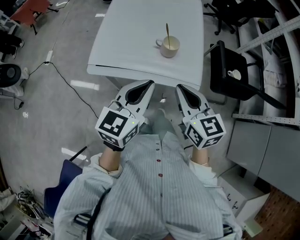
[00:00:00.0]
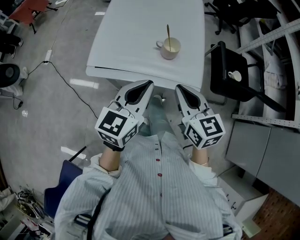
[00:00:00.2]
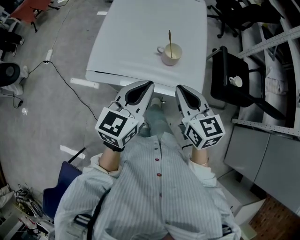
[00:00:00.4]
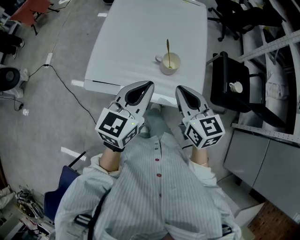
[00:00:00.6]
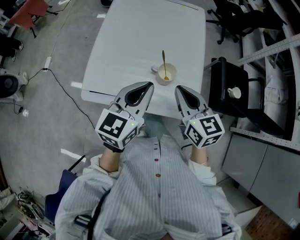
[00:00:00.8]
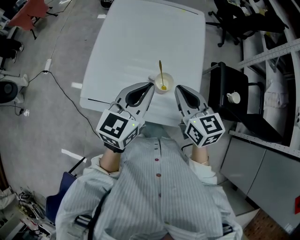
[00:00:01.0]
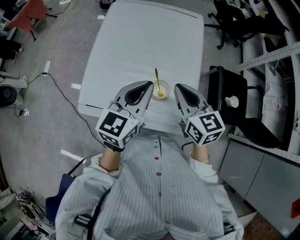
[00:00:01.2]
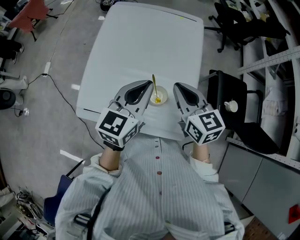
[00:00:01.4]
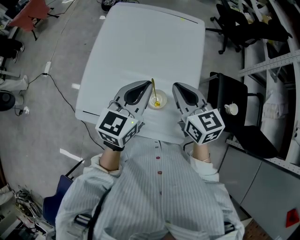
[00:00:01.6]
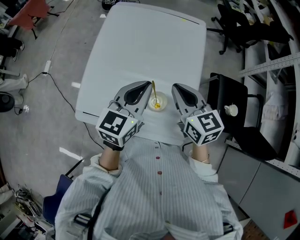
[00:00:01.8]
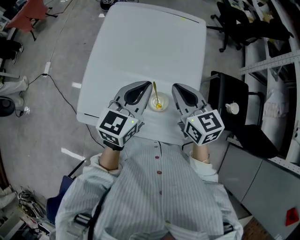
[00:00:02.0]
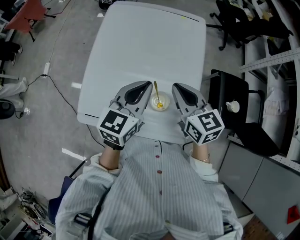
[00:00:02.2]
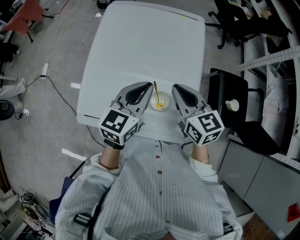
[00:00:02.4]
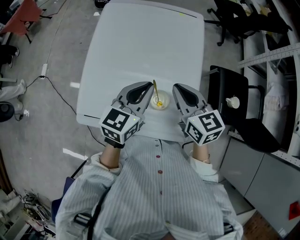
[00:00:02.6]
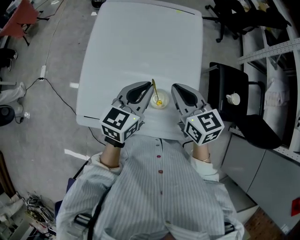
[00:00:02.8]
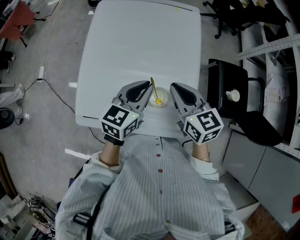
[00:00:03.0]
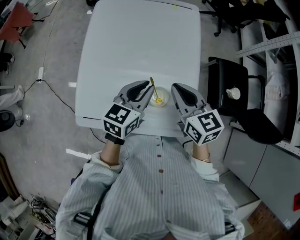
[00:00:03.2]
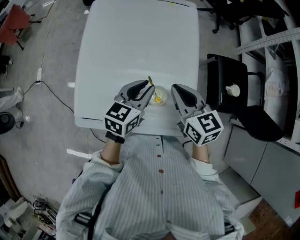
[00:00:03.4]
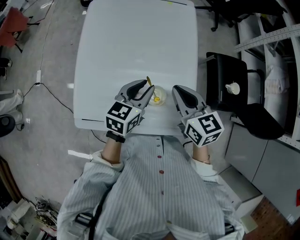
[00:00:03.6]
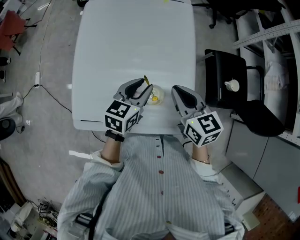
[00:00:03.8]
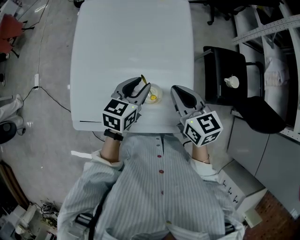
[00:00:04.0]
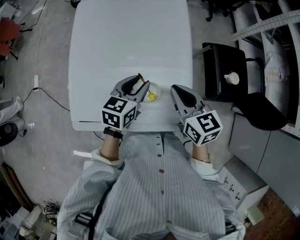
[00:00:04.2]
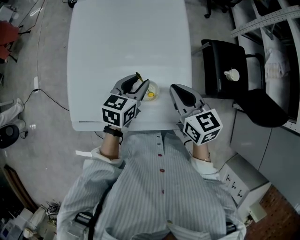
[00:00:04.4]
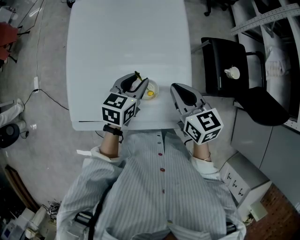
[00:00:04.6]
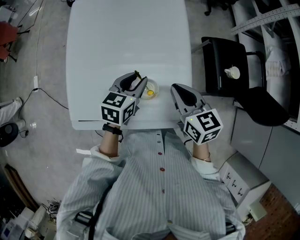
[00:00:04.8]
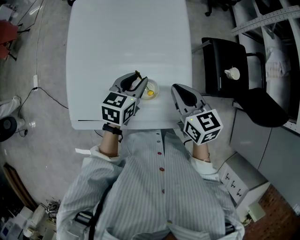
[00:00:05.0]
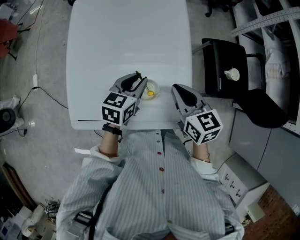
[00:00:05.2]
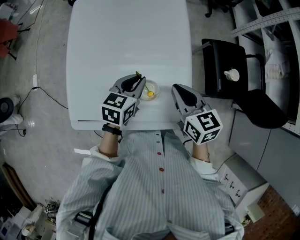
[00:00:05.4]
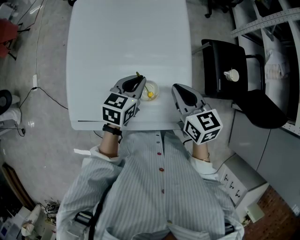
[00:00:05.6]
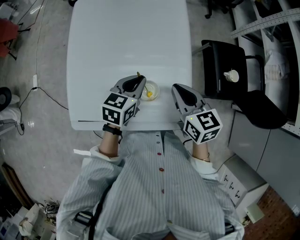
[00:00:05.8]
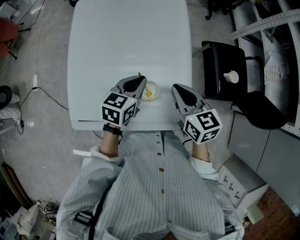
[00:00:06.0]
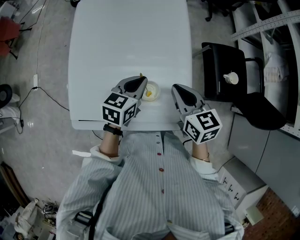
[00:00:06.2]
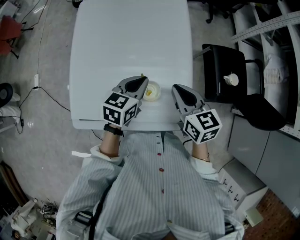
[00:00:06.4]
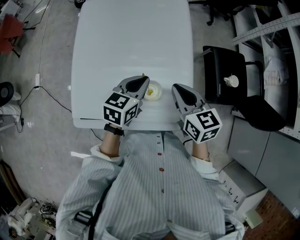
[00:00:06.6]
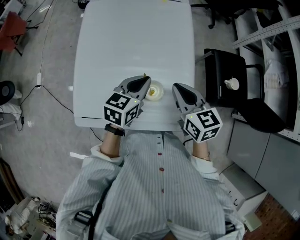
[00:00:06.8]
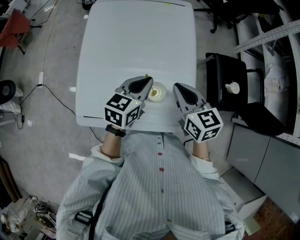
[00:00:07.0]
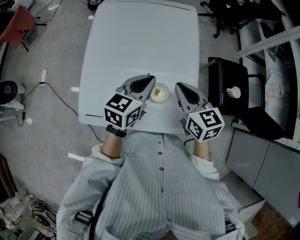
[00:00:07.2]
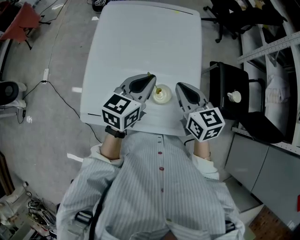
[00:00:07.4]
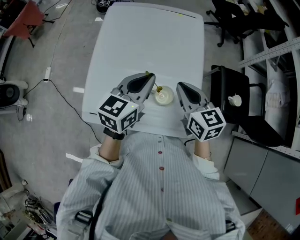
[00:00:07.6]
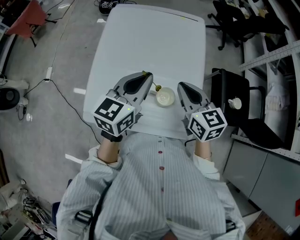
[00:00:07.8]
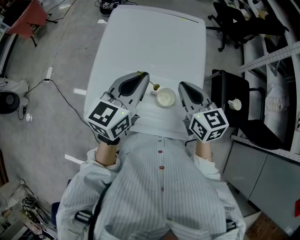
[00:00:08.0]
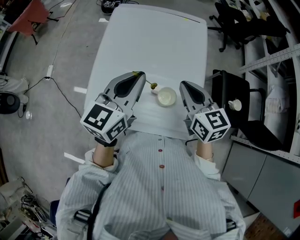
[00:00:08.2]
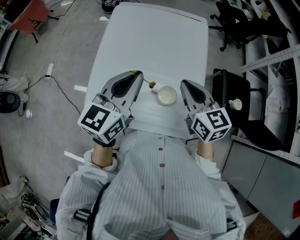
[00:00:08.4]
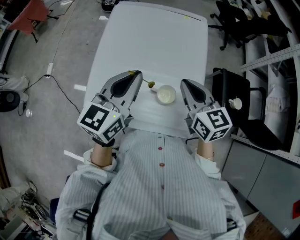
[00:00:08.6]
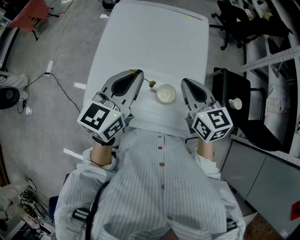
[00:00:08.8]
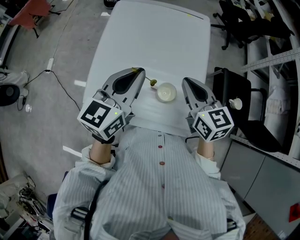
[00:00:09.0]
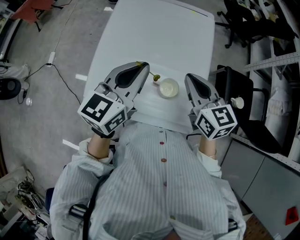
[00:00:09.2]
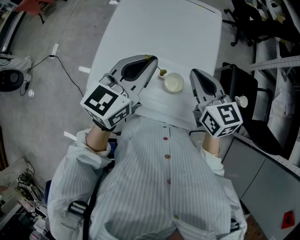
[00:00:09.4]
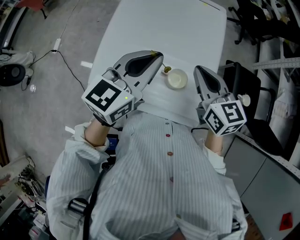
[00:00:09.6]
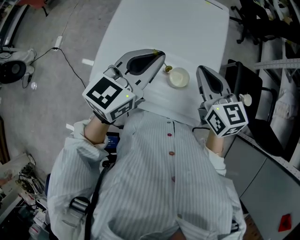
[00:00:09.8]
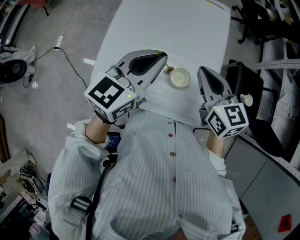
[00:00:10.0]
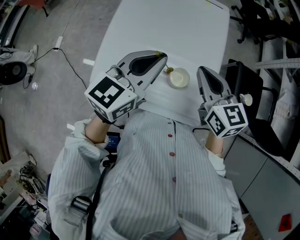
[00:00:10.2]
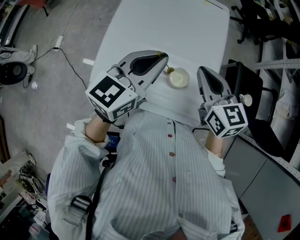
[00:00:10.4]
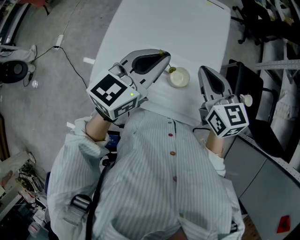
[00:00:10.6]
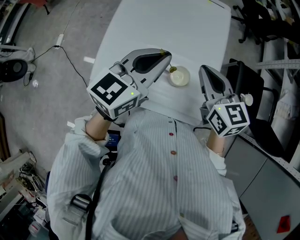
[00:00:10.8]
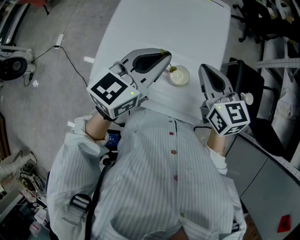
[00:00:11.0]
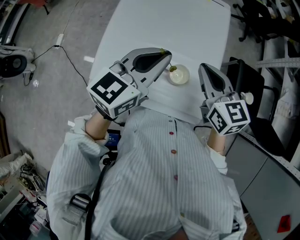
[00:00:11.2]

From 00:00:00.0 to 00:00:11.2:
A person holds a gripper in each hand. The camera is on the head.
From 00:00:00.0 to 00:00:01.6: The grippers both shift forward by approximately 30 cm.
From 00:00:01.6 to 00:00:03.2: The left gripper heads downward, covering some 10 cm.
From 00:00:03.2 to 00:00:04.8: The right gripper travels to the right by approximately 5 cm. The left gripper moves downward, roughly 5 cm.
From 00:00:04.8 to 00:00:06.4: The left gripper closes up.
From 00:00:06.4 to 00:00:08.0: The right gripper goes roughly 10 cm upward and to the left. Meanwhile the left gripper heads upward and to the left, covering about 20 cm, and turns by approximately 30 degrees.
From 00:00:08.0 to 00:00:11.2: The grippers stay close to where they were, moving slightly.

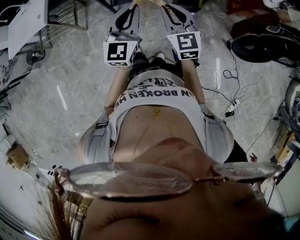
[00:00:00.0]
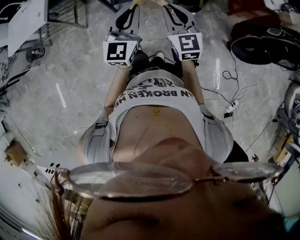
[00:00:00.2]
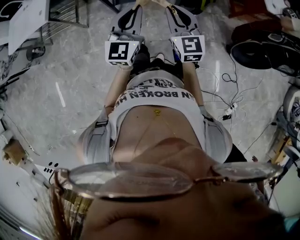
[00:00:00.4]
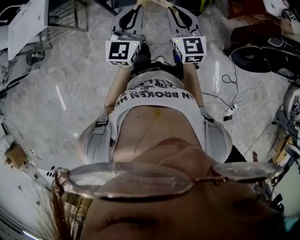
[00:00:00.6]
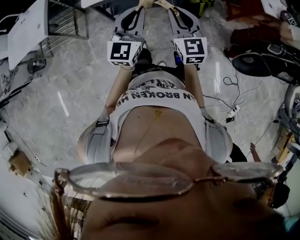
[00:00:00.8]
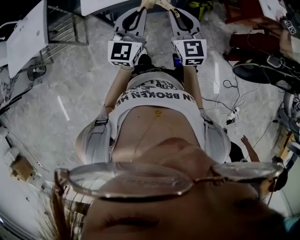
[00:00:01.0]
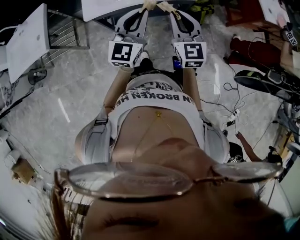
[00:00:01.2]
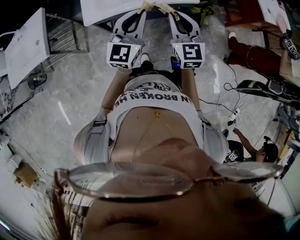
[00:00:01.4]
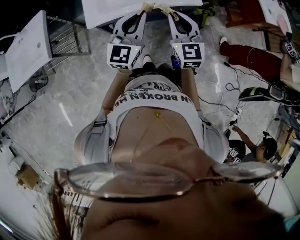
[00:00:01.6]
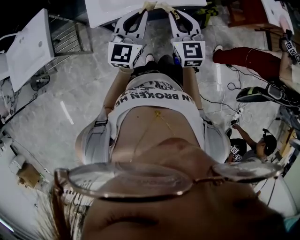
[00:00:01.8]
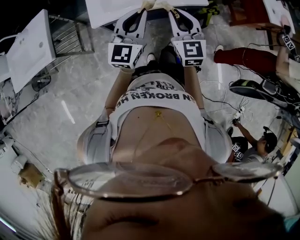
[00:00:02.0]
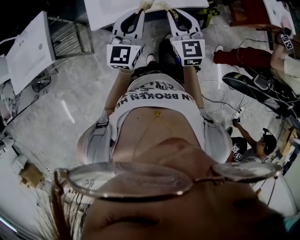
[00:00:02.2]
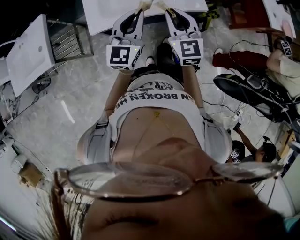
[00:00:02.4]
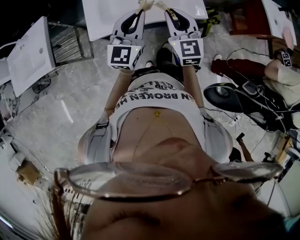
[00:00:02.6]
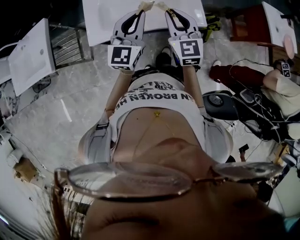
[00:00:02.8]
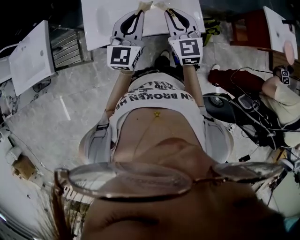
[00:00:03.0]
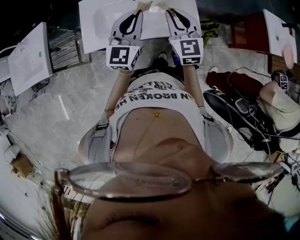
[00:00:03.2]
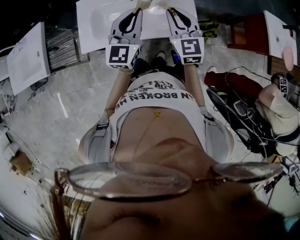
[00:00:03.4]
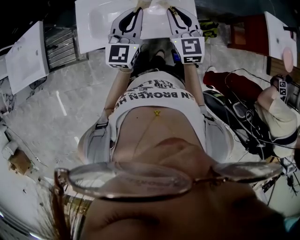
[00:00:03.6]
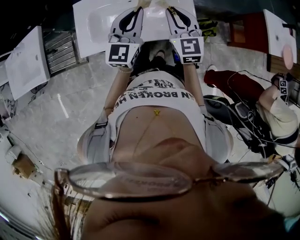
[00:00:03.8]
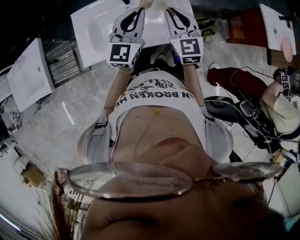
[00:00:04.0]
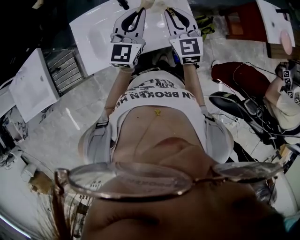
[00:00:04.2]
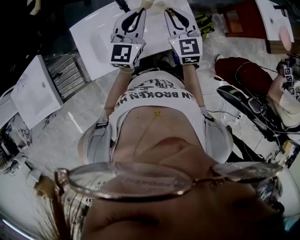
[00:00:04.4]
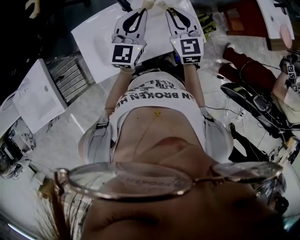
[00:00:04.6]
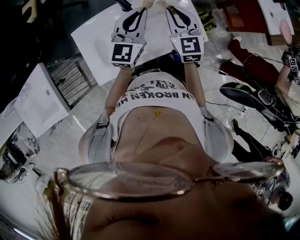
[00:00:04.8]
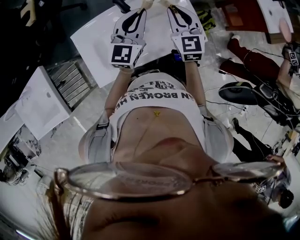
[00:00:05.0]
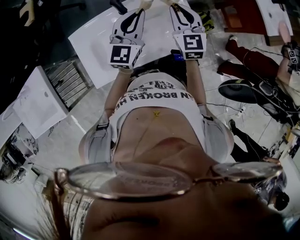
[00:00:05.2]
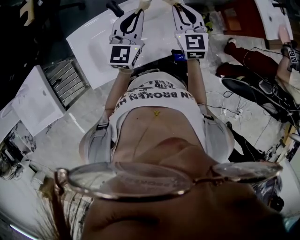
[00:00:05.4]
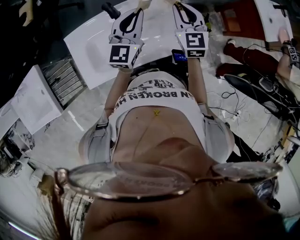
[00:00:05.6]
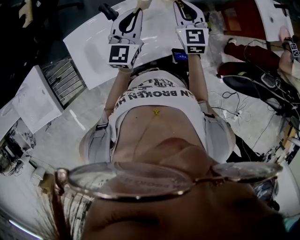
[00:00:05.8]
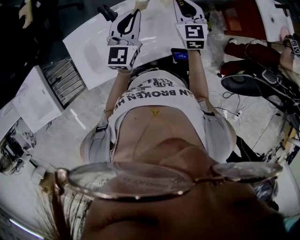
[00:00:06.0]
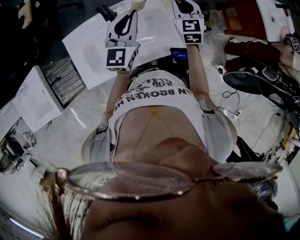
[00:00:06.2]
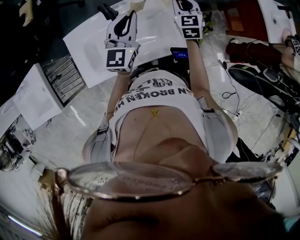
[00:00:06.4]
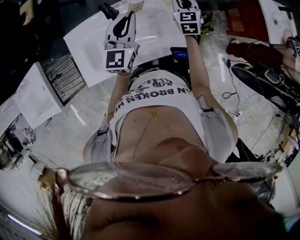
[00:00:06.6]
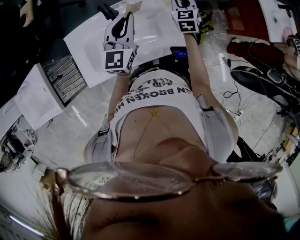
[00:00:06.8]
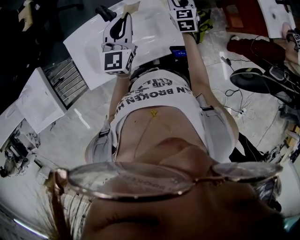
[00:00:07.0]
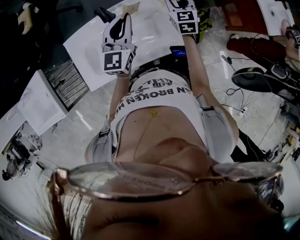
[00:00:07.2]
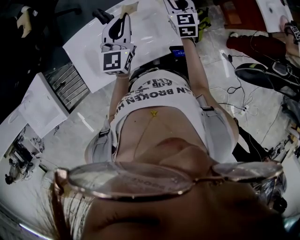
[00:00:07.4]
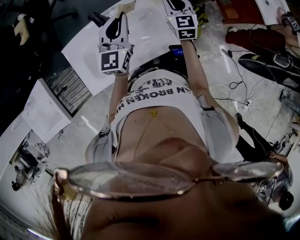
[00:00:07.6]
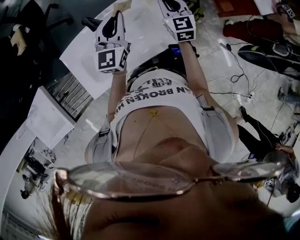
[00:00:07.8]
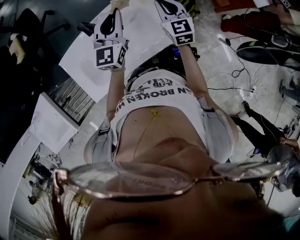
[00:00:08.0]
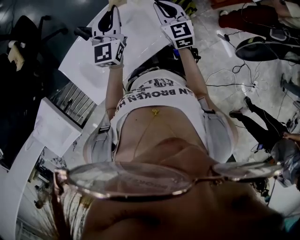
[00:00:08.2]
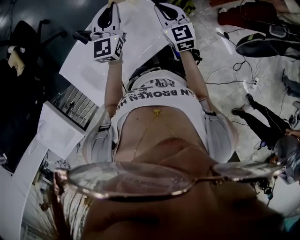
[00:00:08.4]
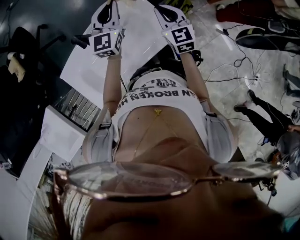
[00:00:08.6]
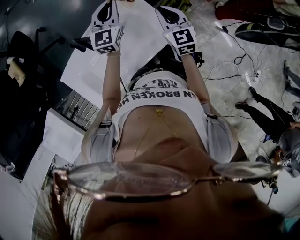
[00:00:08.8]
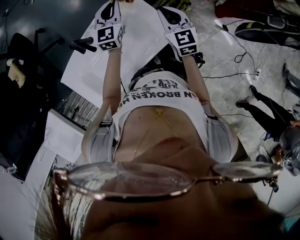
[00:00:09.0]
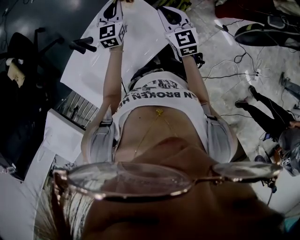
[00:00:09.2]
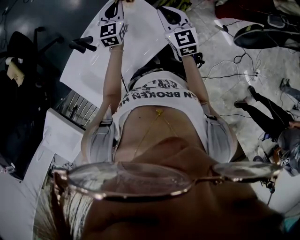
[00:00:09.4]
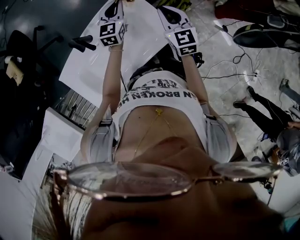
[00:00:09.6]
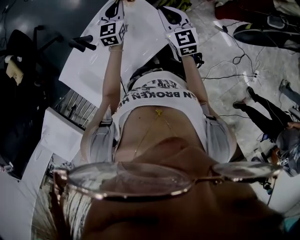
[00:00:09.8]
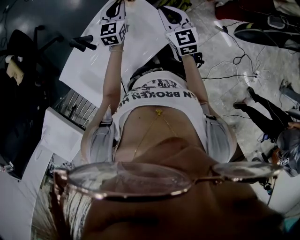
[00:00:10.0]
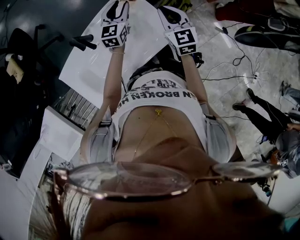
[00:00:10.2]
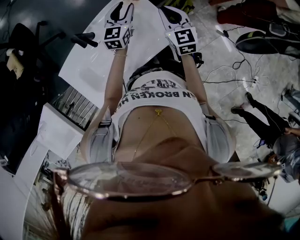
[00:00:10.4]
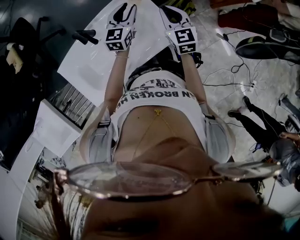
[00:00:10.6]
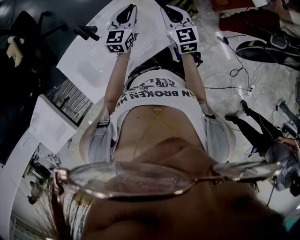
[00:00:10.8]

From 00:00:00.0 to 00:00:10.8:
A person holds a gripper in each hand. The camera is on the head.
From 00:00:00.0 to 00:00:01.6: The grippers both shift forward by about 20 cm.
From 00:00:01.6 to 00:00:03.0: Both grippers travel together forward, approximately 20 cm.
From 00:00:03.0 to 00:00:04.6: Both grippers travel together forward, about 15 cm.
From 00:00:04.6 to 00:00:06.2: The left gripper heads forward and to the right, covering about 10 cm, while the right gripper travels forward, to the right and downward by some 20 cm.
From 00:00:06.2 to 00:00:07.8: The right gripper opens, then closes once more.
From 00:00:07.8 to 00:00:09.2: The left gripper travels downward, forward and to the right by some 20 cm. Meanwhile the right gripper is displaced to the right by about 10 cm.
From 00:00:09.2 to 00:00:10.8: The left gripper is displaced backward by some 5 cm, and opens, then closes again.

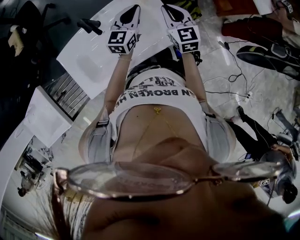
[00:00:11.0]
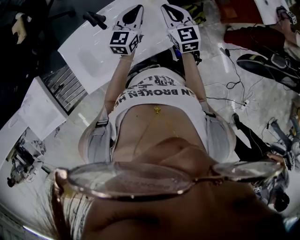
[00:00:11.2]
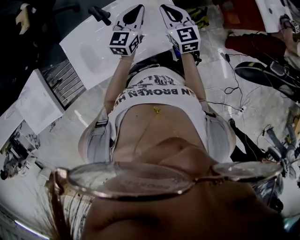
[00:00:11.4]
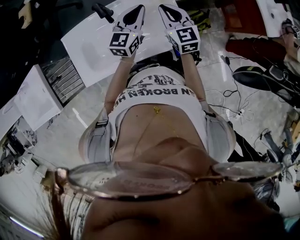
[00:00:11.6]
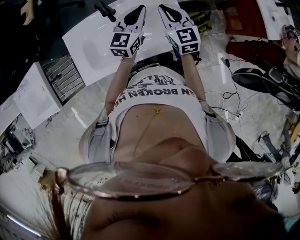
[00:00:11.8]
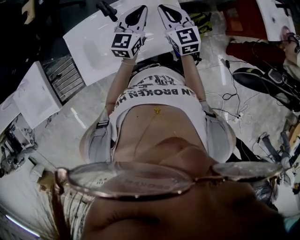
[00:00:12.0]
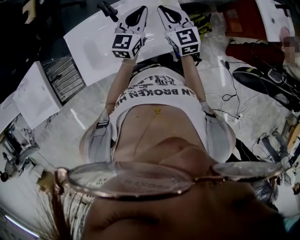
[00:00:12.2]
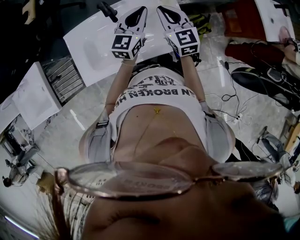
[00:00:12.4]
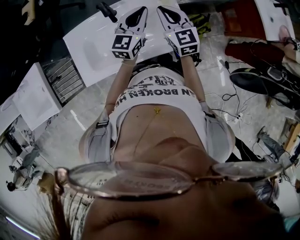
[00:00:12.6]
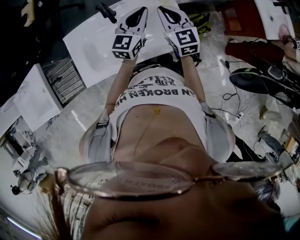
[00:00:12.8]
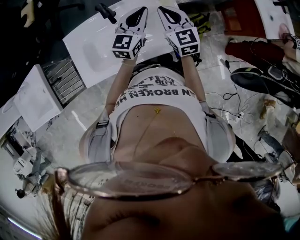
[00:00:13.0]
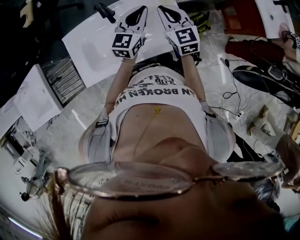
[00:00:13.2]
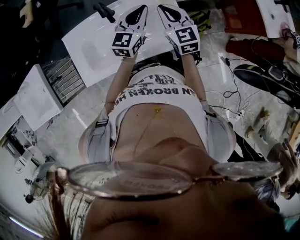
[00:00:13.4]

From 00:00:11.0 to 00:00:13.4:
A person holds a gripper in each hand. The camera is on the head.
From 00:00:11.0 to 00:00:12.2: The right gripper moves to the left, roughly 10 cm. Meanwhile the left gripper shifts approximately 10 cm to the left and upward.
From 00:00:12.2 to 00:00:13.4: The grippers stay close to where they were, moving slightly.
